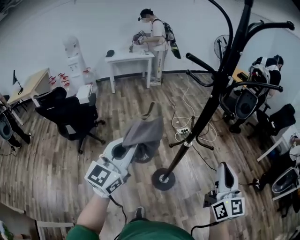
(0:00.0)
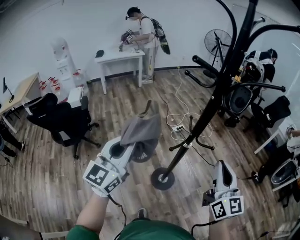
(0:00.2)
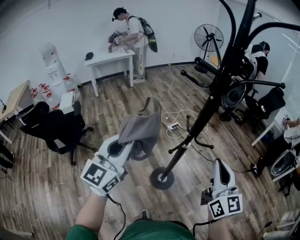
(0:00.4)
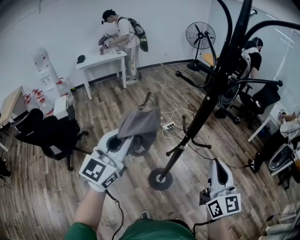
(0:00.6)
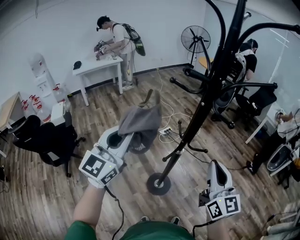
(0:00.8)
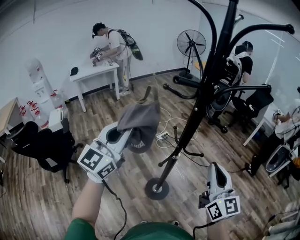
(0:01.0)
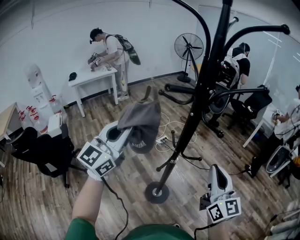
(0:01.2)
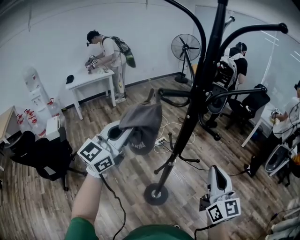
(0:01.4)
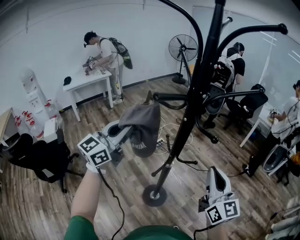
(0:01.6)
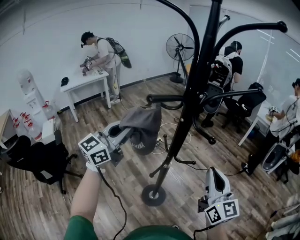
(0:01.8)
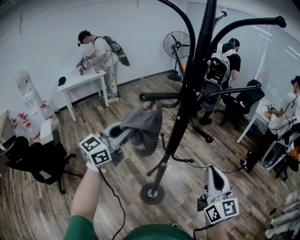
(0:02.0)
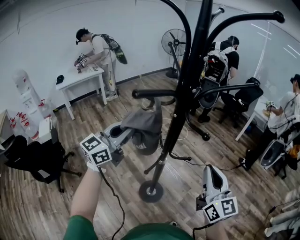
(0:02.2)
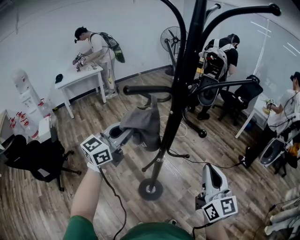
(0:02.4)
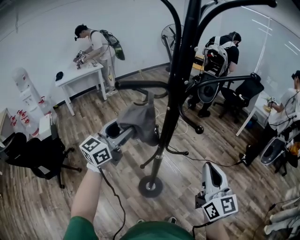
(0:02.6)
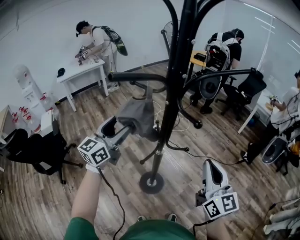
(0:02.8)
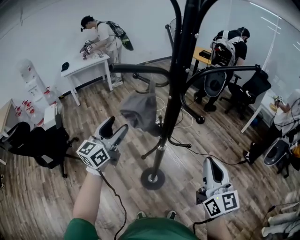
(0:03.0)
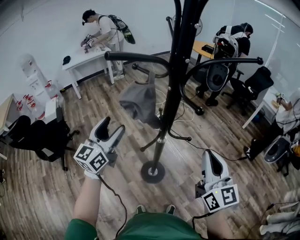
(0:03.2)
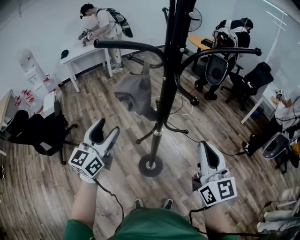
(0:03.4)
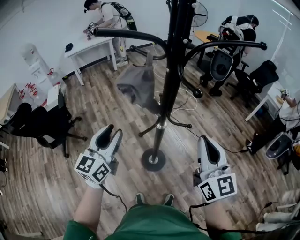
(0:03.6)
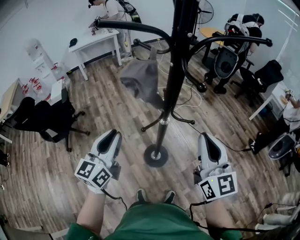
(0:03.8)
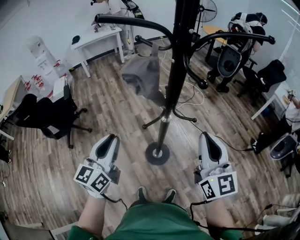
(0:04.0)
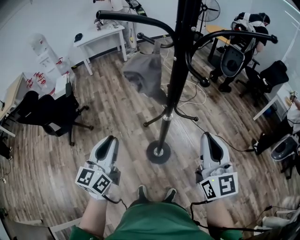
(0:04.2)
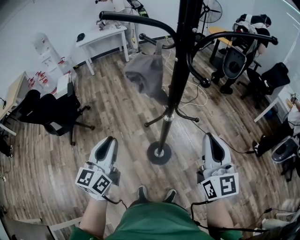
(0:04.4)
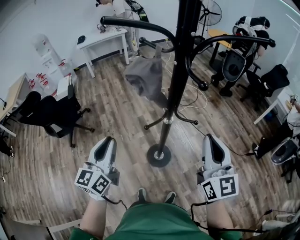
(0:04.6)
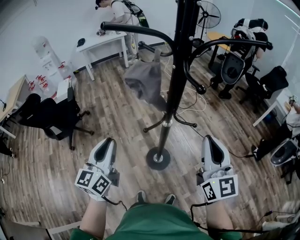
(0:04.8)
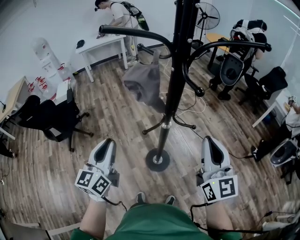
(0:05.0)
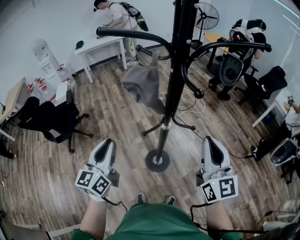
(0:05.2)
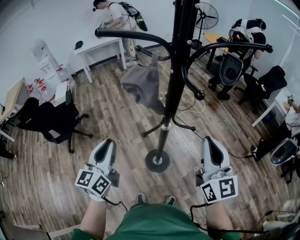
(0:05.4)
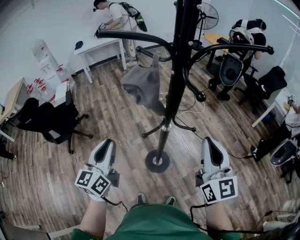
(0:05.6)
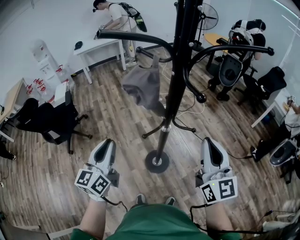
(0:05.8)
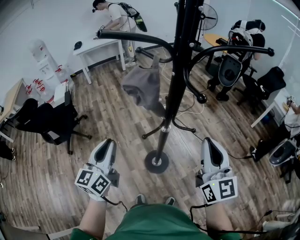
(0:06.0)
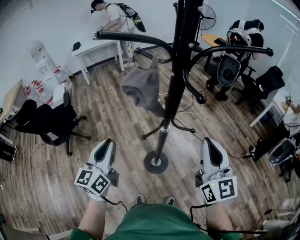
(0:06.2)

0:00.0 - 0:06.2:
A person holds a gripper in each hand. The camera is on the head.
0:00.0 - 0:01.6: The right gripper moves forward, roughly 5 cm. Meanwhile the left gripper moves forward, some 25 cm, and changes its angle by approximately 30 degrees.
0:01.6 - 0:03.2: The left gripper moves downward, some 10 cm, swivels roughly 20 degrees, and opens its fingers.
0:03.2 - 0:04.6: The left gripper shifts roughly 15 cm backward, changes its angle by roughly 20 degrees, and closes up.
0:04.6 - 0:06.2: The grippers make only small movements.

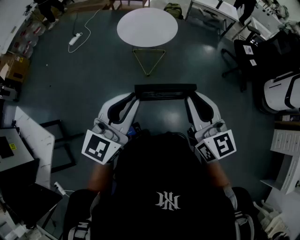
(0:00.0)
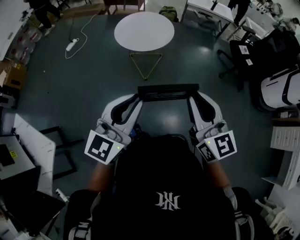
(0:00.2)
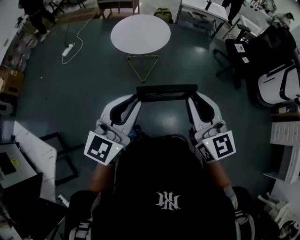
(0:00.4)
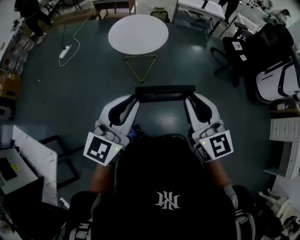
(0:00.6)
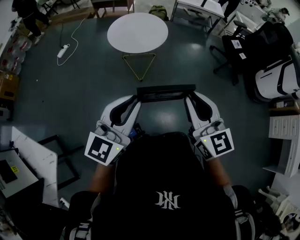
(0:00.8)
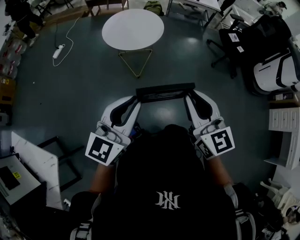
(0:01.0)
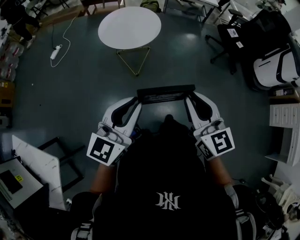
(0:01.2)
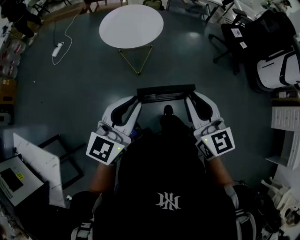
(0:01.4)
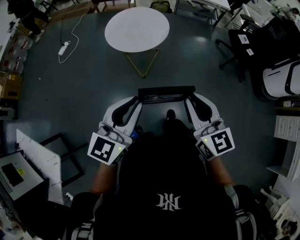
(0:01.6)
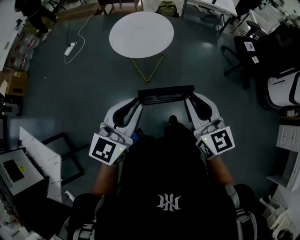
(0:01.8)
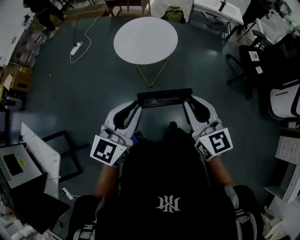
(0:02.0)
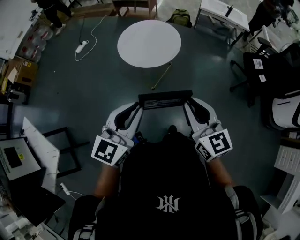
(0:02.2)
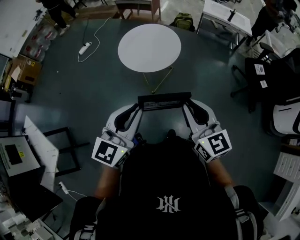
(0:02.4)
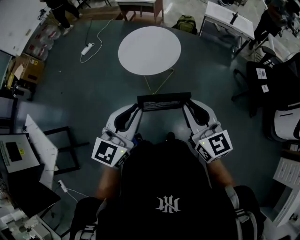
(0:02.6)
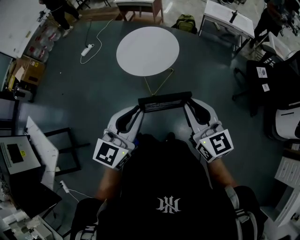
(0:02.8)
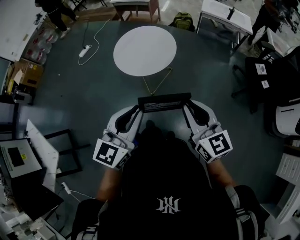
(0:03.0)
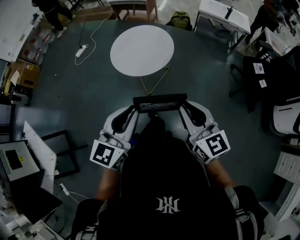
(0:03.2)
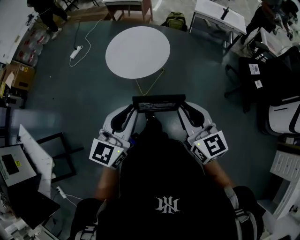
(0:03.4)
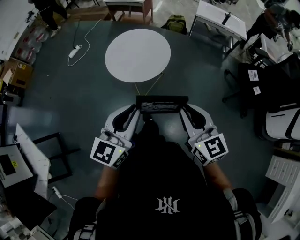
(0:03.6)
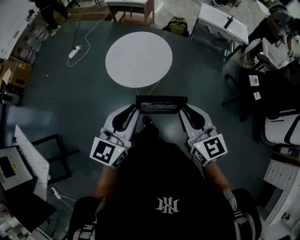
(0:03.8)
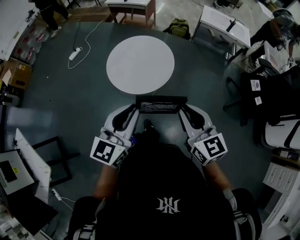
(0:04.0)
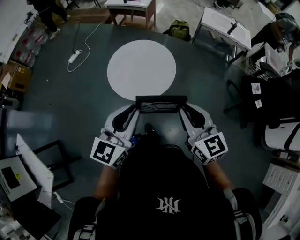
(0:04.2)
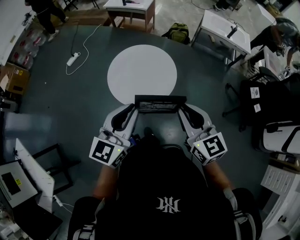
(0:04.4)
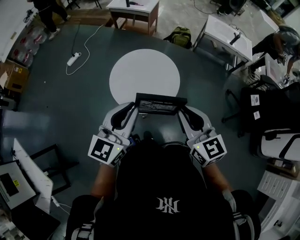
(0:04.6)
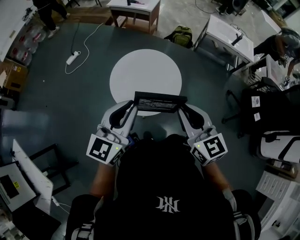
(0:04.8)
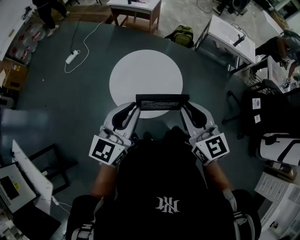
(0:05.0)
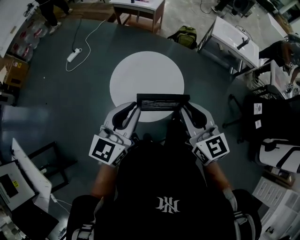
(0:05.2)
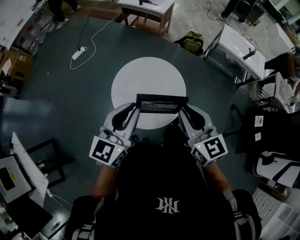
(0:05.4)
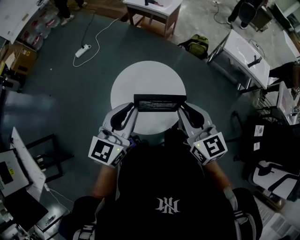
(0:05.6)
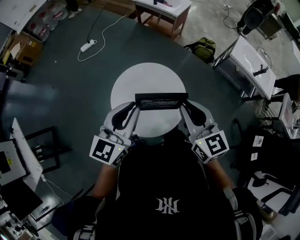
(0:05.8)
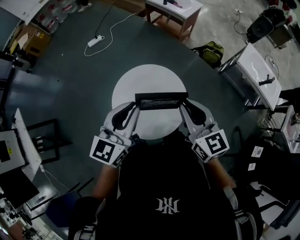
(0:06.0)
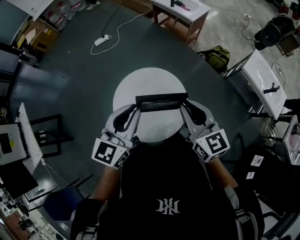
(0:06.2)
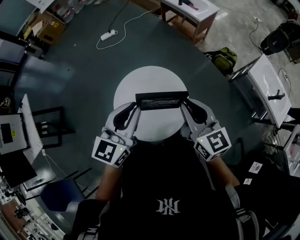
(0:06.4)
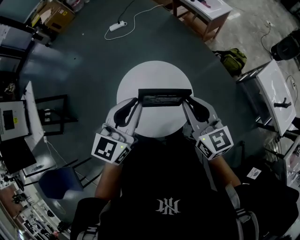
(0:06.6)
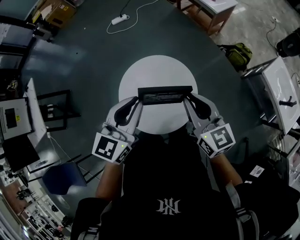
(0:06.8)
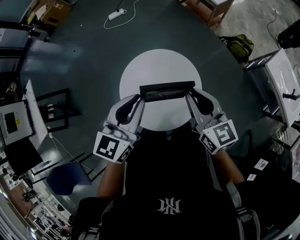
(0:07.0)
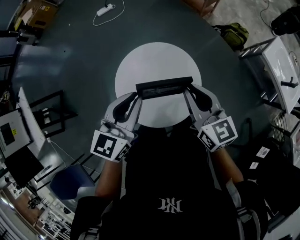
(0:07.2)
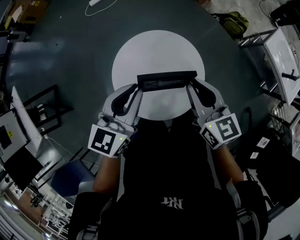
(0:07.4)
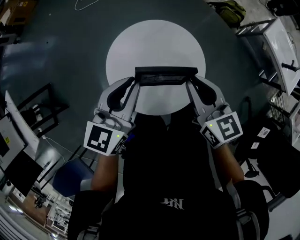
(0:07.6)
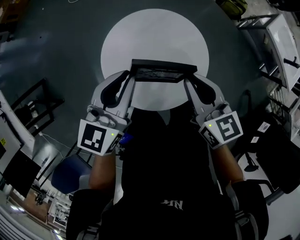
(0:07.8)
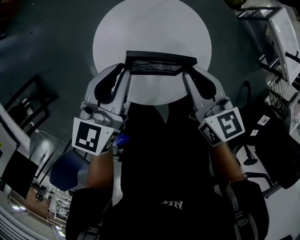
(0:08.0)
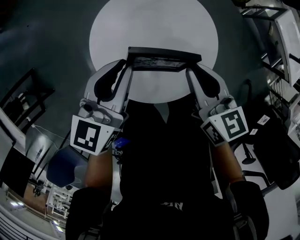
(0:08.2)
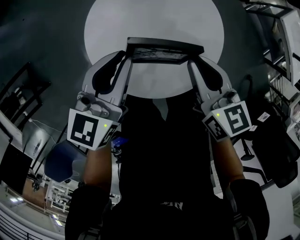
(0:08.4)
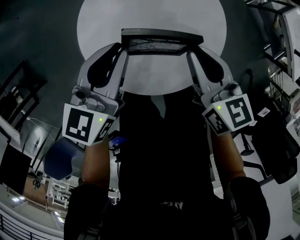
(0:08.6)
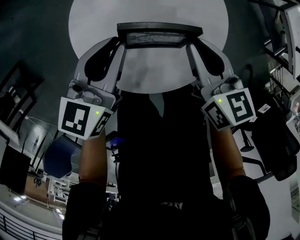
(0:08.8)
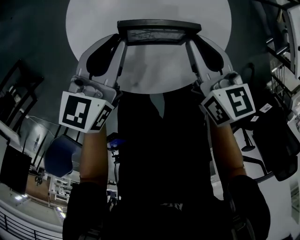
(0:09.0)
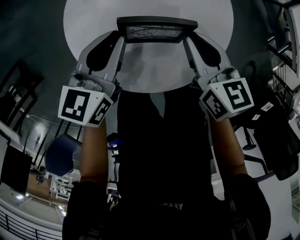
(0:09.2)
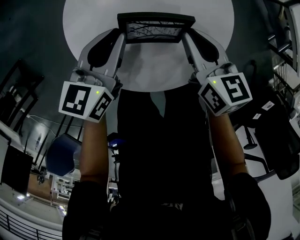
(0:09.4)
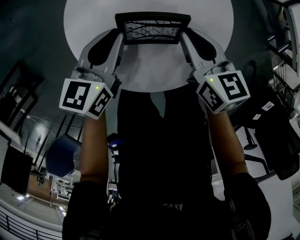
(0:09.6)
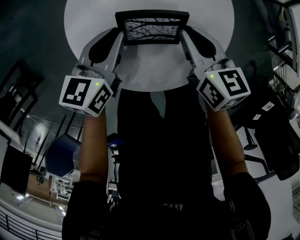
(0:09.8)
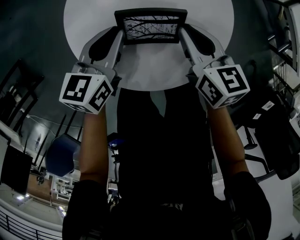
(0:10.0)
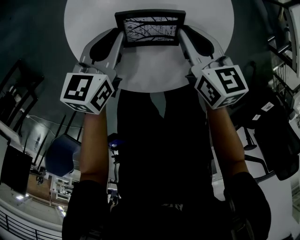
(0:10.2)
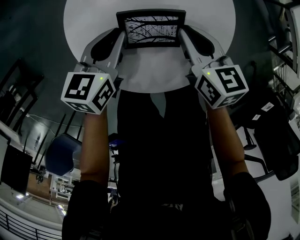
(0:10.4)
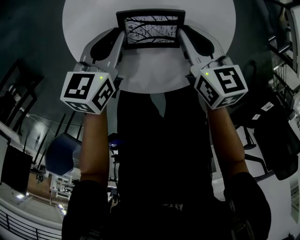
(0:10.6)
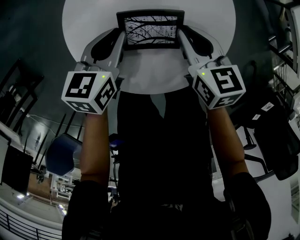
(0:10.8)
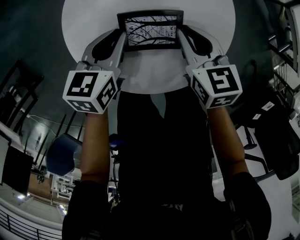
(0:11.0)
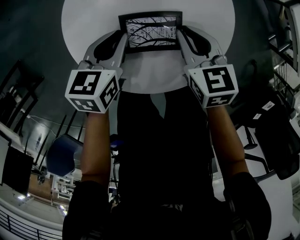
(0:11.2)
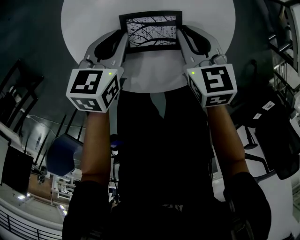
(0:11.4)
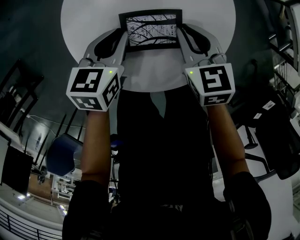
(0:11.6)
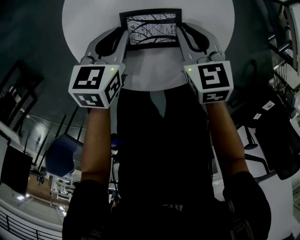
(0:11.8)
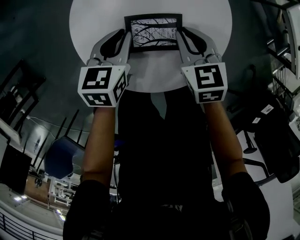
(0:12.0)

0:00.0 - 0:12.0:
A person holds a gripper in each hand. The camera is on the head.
0:00.0 - 0:01.6: Both grippers move forward, about 10 cm.
0:01.6 - 0:03.0: The right gripper goes roughly 20 cm forward and to the right. The left gripper heads to the right and forward, covering about 20 cm.
0:03.0 - 0:04.4: The grippers both shift forward by approximately 25 cm.
0:04.4 - 0:06.0: The two grippers go some 30 cm forward. The right gripper swivels roughly 20 degrees; the left gripper changes its angle by about 20 degrees.
0:06.0 - 0:07.6: Both grippers move downward and forward, roughly 15 cm.
0:07.6 - 0:09.0: Both grippers travel together downward, roughly 20 cm.
0:09.0 - 0:10.4: The grippers both shift downward by some 5 cm.
0:10.4 - 0:12.0: The right gripper changes its angle by some 20 degrees.

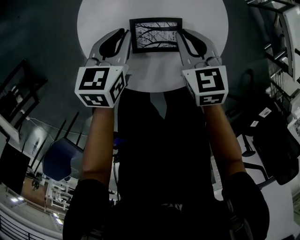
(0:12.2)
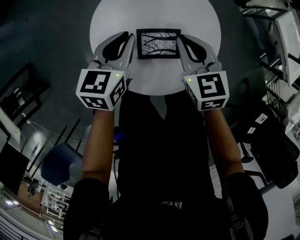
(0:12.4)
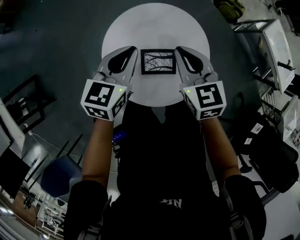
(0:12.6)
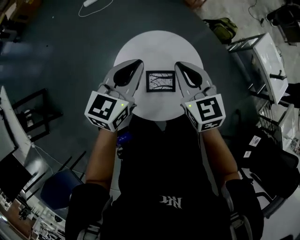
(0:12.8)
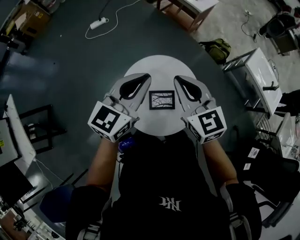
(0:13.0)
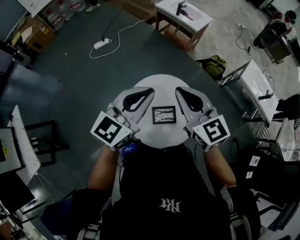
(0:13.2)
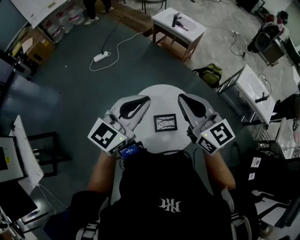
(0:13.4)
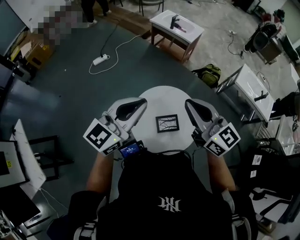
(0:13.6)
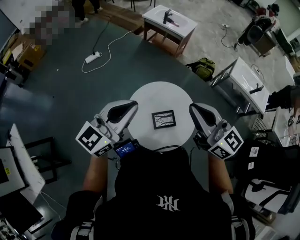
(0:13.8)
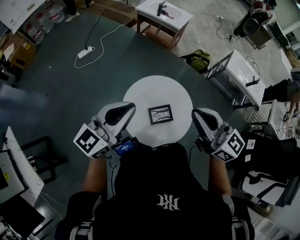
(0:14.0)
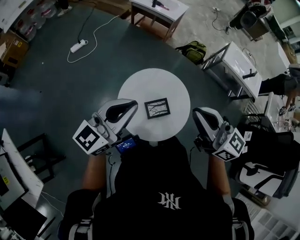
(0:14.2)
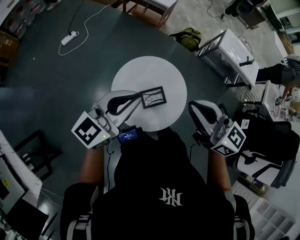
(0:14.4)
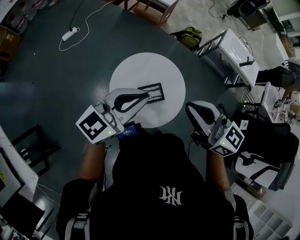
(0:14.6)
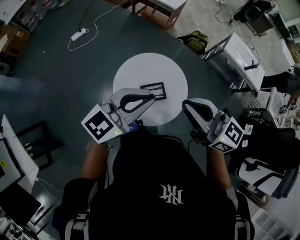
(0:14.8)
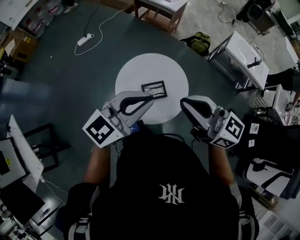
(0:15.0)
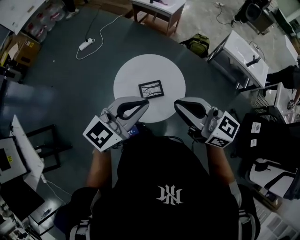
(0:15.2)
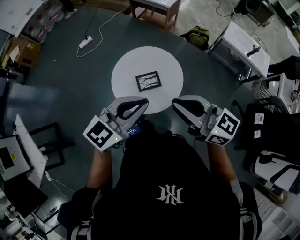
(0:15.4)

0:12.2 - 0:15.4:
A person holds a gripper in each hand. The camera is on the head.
0:12.2 - 0:13.8: The two grippers go about 50 cm upward. The right gripper tilts its fingers approximately 50 degrees upward. The left gripper tilts its fingers roughly 40 degrees upward.
0:13.8 - 0:15.4: The right gripper heads backward and to the right, covering approximately 20 cm. The left gripper travels to the right and backward by about 25 cm.

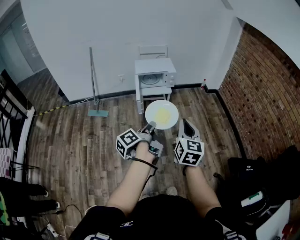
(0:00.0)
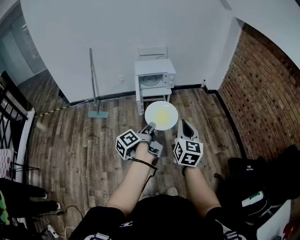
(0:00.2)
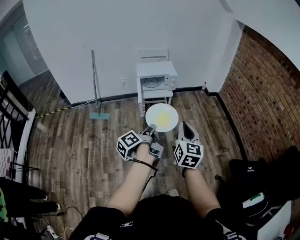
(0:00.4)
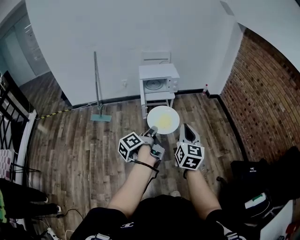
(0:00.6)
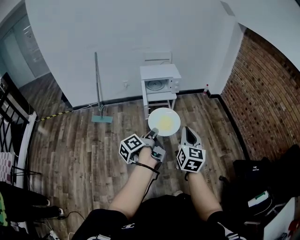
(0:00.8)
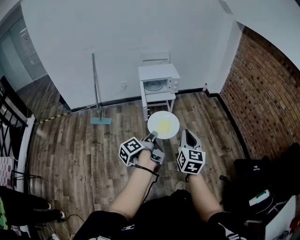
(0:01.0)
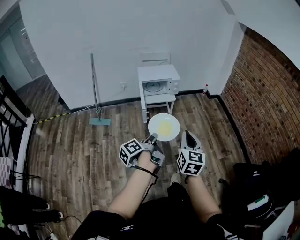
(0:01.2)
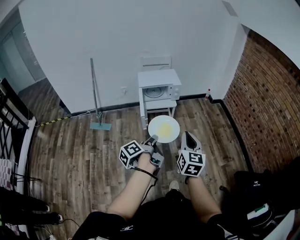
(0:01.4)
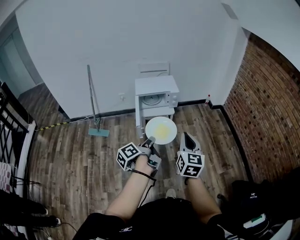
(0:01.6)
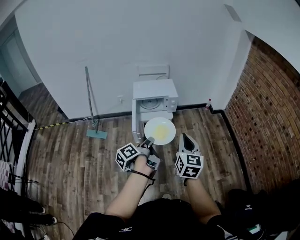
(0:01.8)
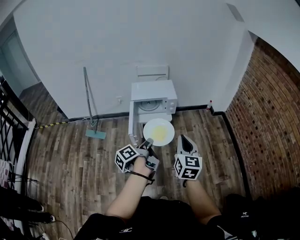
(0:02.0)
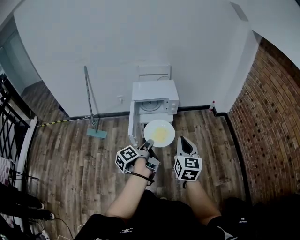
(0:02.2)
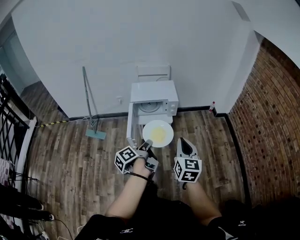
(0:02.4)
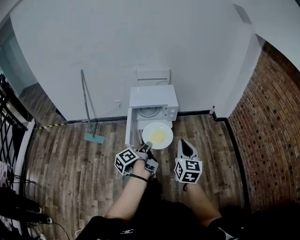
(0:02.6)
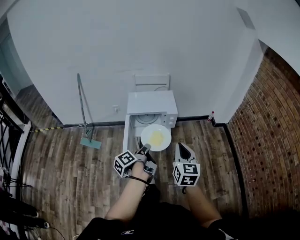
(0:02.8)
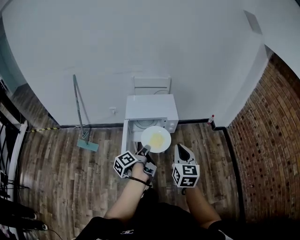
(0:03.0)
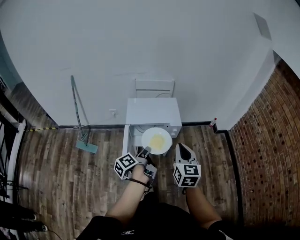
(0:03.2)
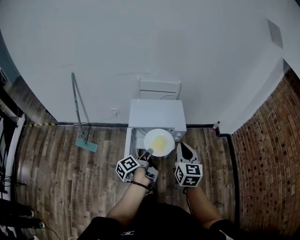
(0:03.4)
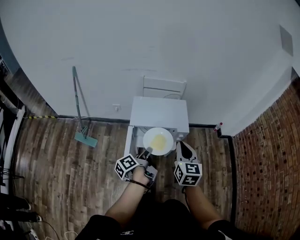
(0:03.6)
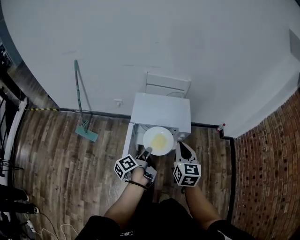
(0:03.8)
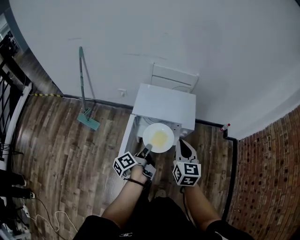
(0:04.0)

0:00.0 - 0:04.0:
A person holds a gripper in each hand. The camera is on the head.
0:00.0 - 0:01.4: The two grippers go approximately 5 cm forward.
0:01.4 - 0:02.6: The two grippers go about 25 cm forward.
0:02.6 - 0:04.0: The left gripper is displaced forward and downward by approximately 25 cm; the right gripper heads forward, covering roughly 30 cm.
